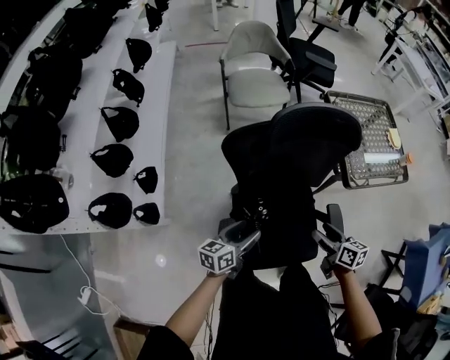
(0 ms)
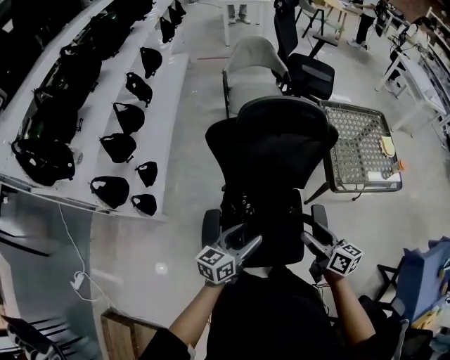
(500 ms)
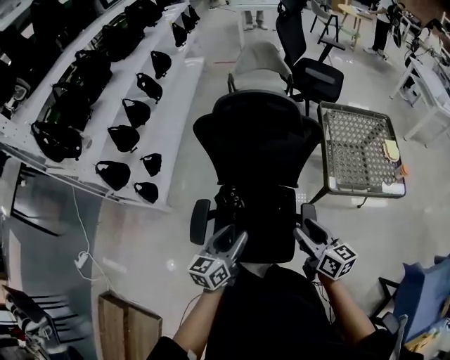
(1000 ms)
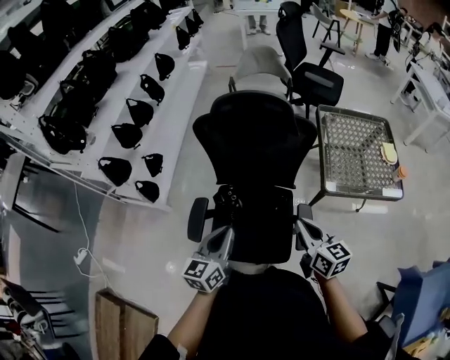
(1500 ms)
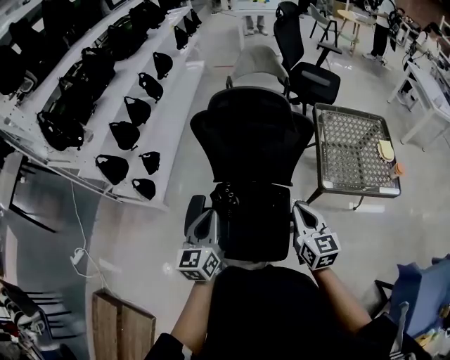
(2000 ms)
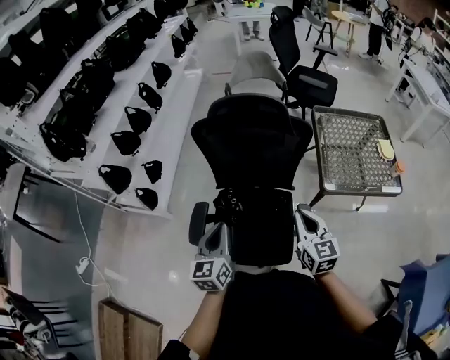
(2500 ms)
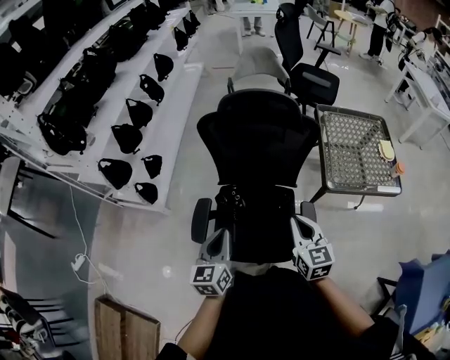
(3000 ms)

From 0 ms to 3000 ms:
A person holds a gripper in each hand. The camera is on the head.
From 0 ms to 1500 ms: The right gripper goes roughly 20 cm upward, to the right and backward, swivels roughly 30 degrees, and closes its fingers; the left gripper shifts about 30 cm to the right, backward and upward, swivels some 40 degrees, and closes up.
From 1500 ms to 3000 ms: The grippers both shift to the left by about 5 cm. The right gripper changes its angle by about 20 degrees.

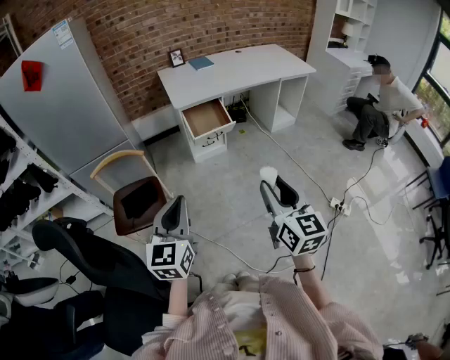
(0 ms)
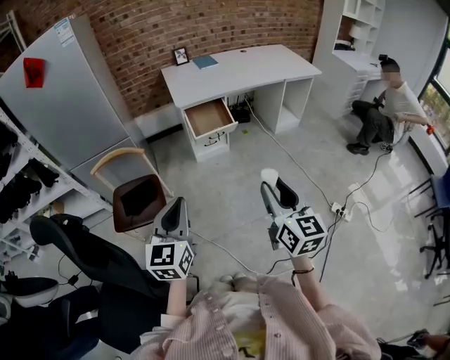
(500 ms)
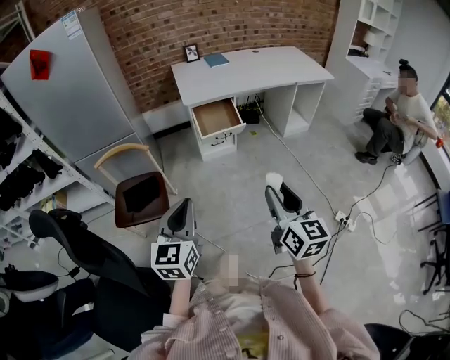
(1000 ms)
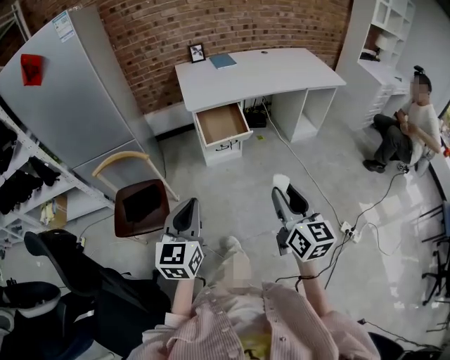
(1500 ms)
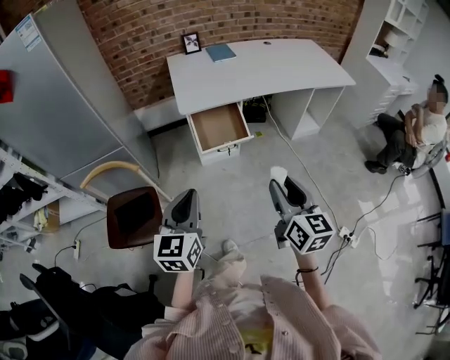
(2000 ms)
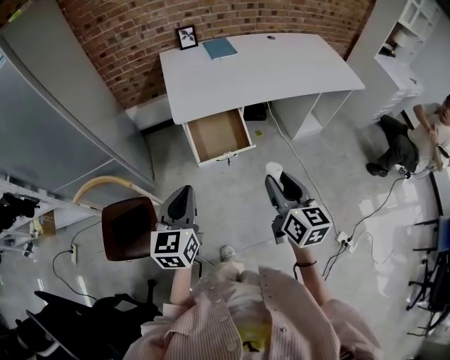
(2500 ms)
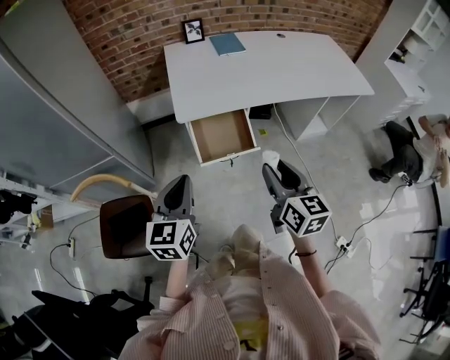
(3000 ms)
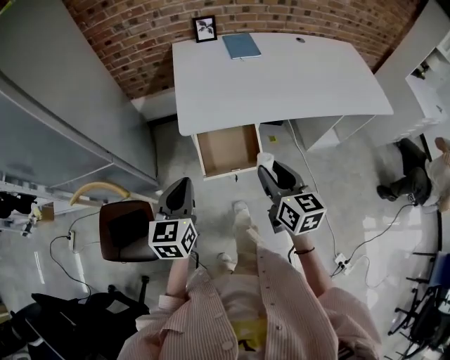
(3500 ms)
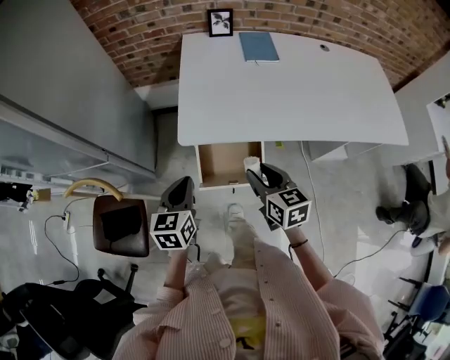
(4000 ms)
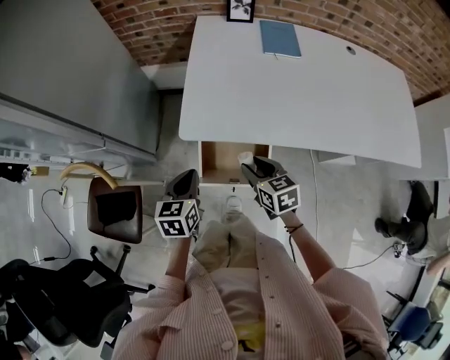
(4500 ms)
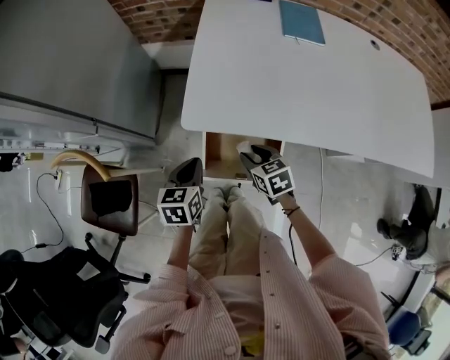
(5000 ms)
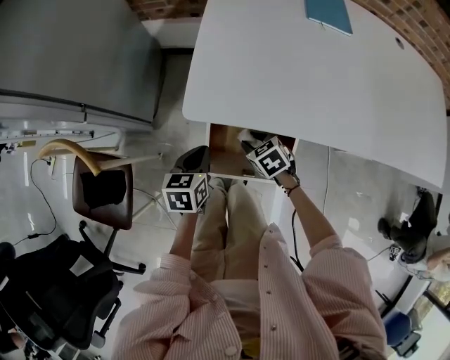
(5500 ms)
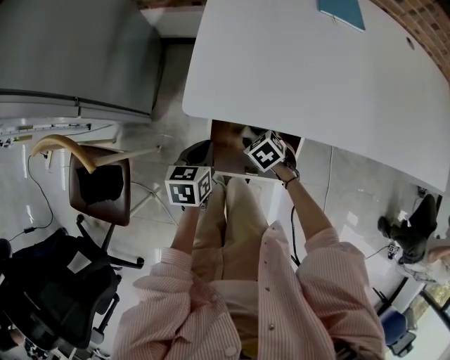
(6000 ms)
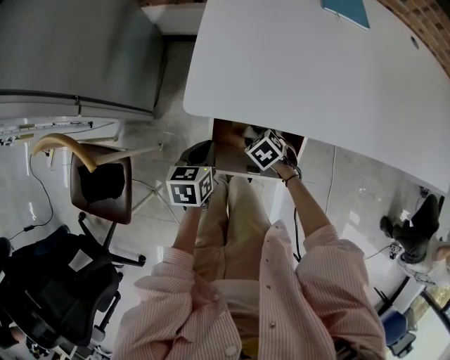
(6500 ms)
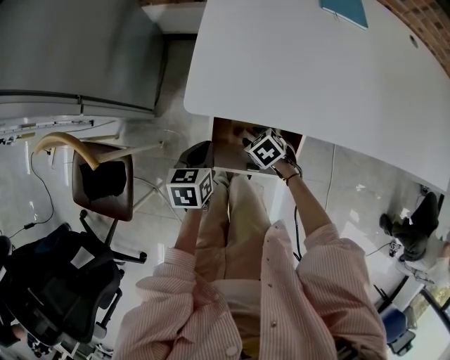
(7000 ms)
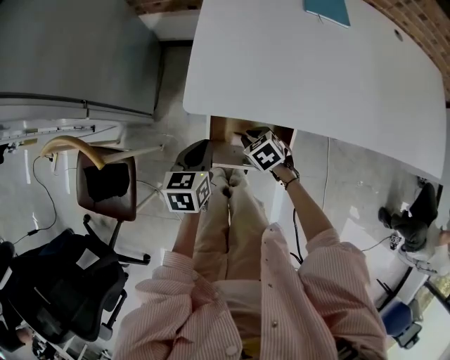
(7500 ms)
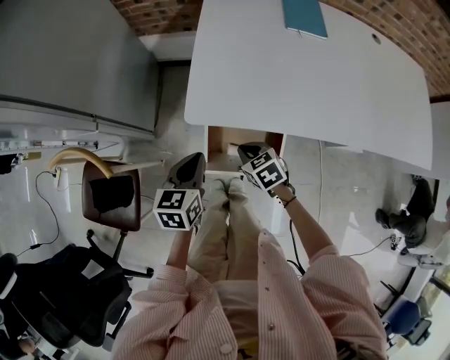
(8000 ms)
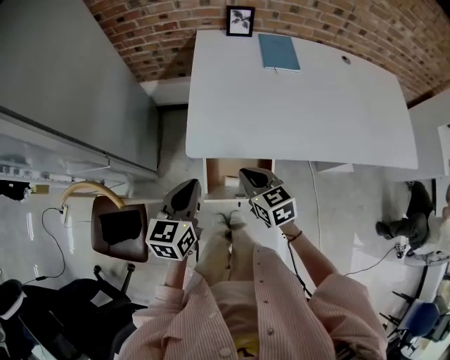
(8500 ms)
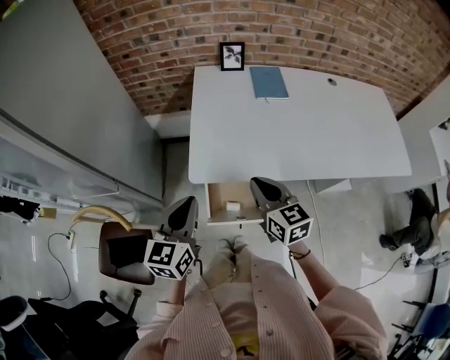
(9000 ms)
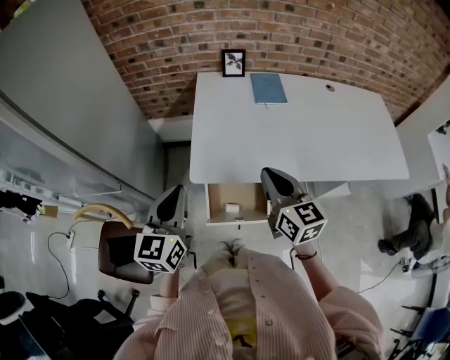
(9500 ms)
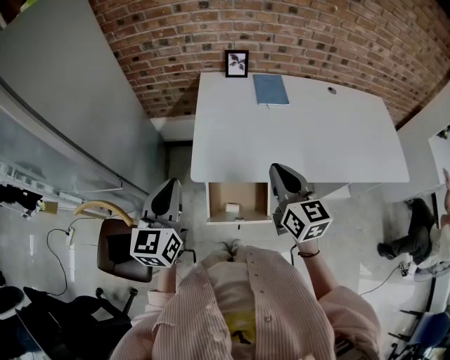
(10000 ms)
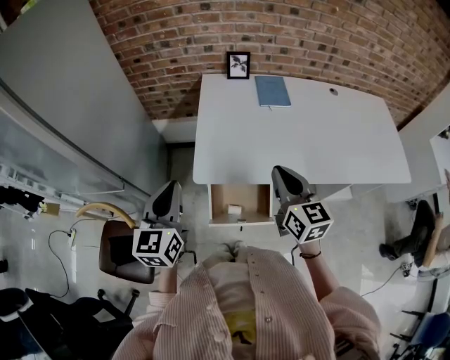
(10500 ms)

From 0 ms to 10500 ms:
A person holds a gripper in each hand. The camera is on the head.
From 0 ms to 2000 ms: Both grippers travel together forward, roughly 30 cm.
From 2000 ms to 4000 ms: Both grippers travel together forward, approximately 40 cm. The right gripper changes its angle by approximately 30 degrees, while the left gripper rotates approximately 20 degrees.
From 4000 ms to 6500 ms: Both grippers travel together downward, some 30 cm. The left gripper rotates about 20 degrees. The right gripper tilts its fingers approximately 40 degrees downward.
From 6500 ms to 8500 ms: Both grippers move upward, roughly 30 cm. The right gripper points its fingers approximately 40 degrees further upward, and closes its fingers. The left gripper rotates about 20 degrees.
From 8500 ms to 10500 ms: The left gripper is displaced upward by some 15 cm, and rotates roughly 20 degrees. Meanwhile the right gripper is displaced upward and to the right by roughly 20 cm, and changes its angle by roughly 30 degrees.

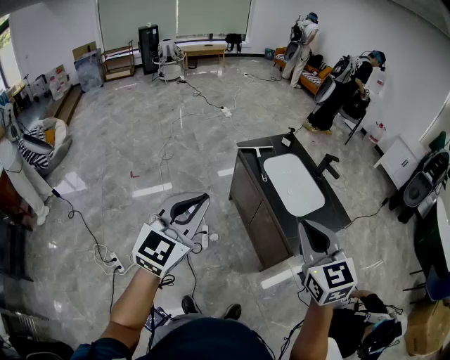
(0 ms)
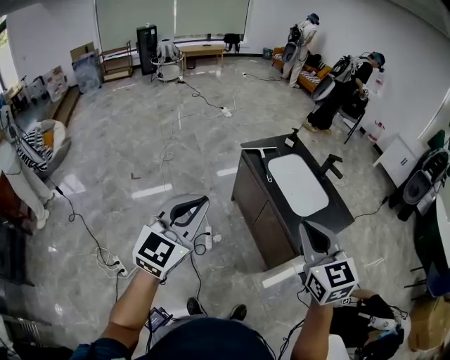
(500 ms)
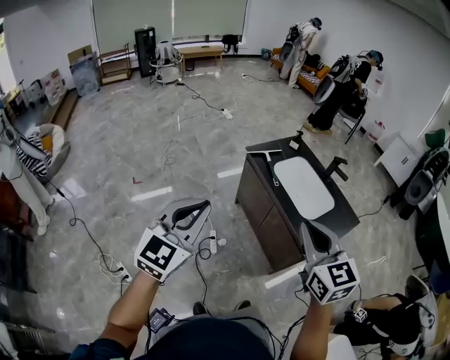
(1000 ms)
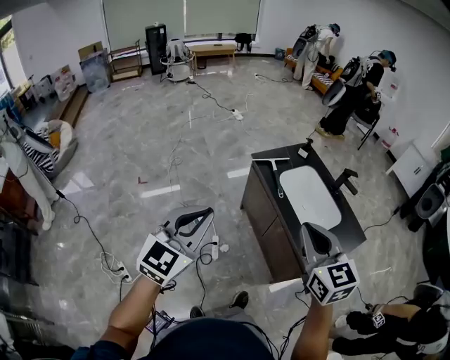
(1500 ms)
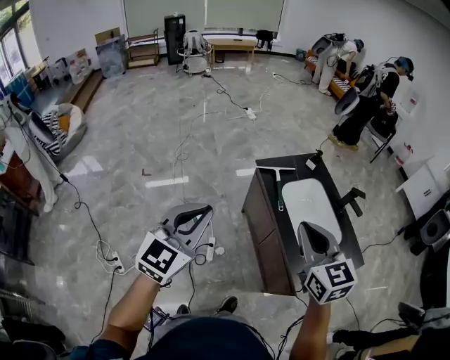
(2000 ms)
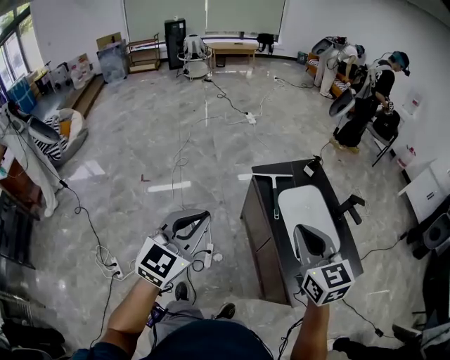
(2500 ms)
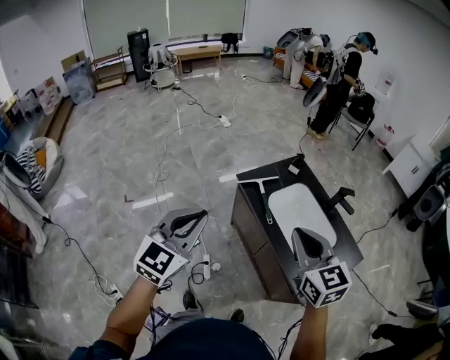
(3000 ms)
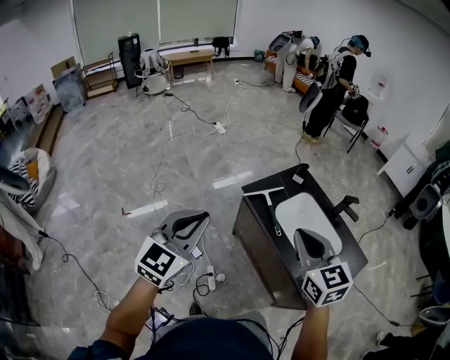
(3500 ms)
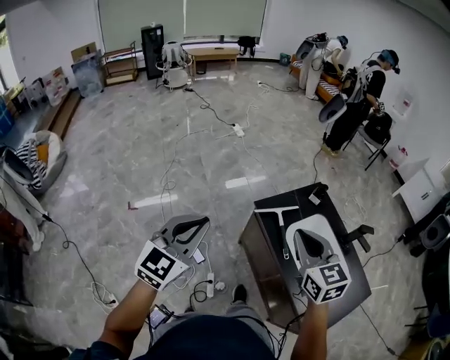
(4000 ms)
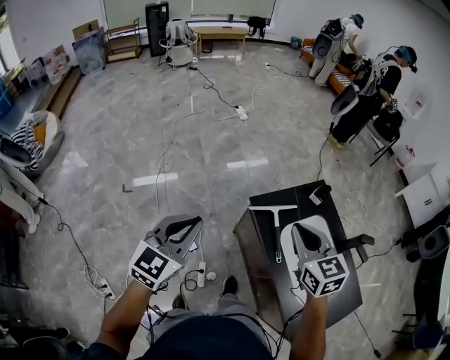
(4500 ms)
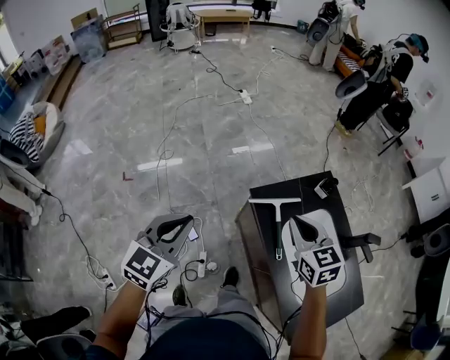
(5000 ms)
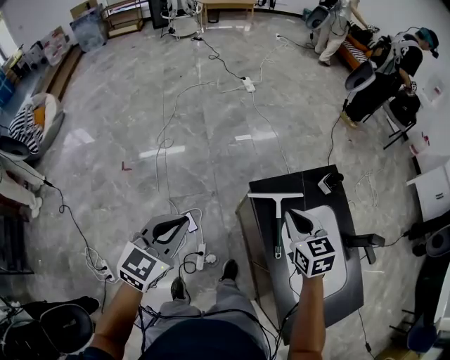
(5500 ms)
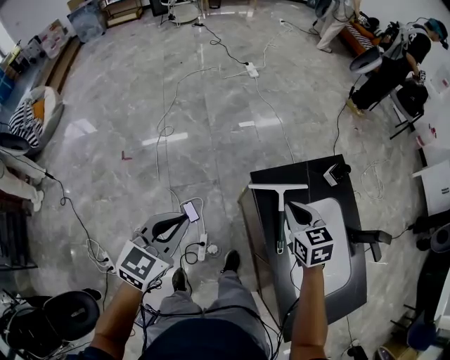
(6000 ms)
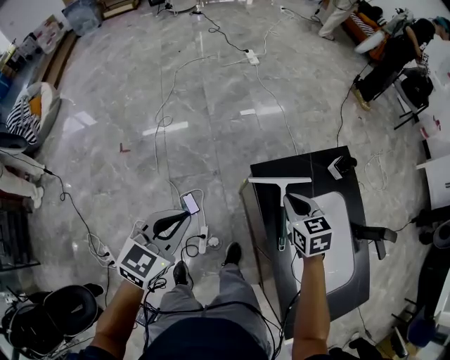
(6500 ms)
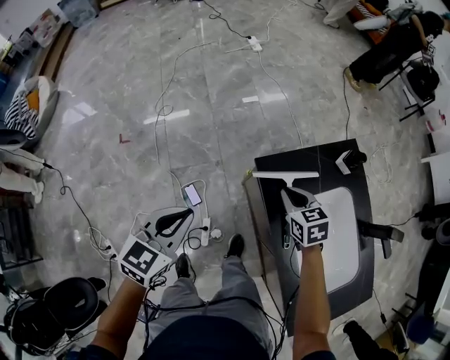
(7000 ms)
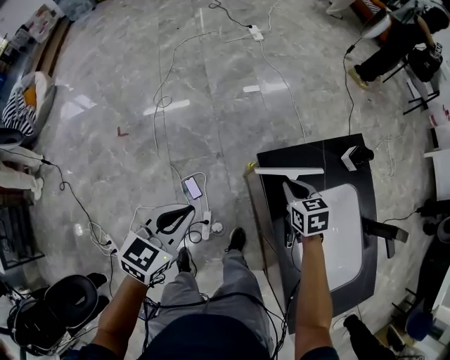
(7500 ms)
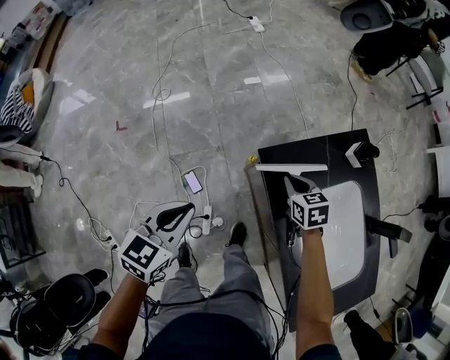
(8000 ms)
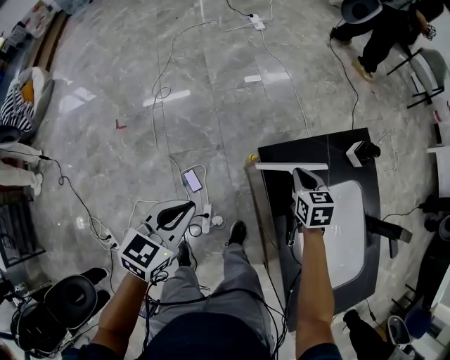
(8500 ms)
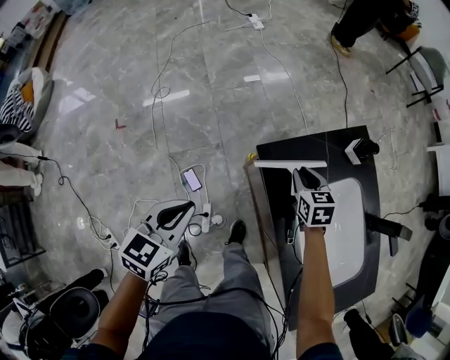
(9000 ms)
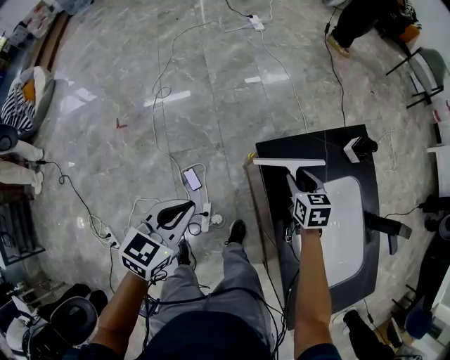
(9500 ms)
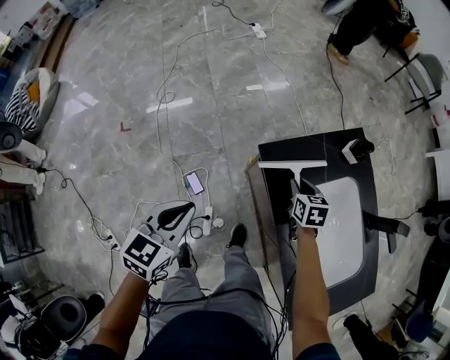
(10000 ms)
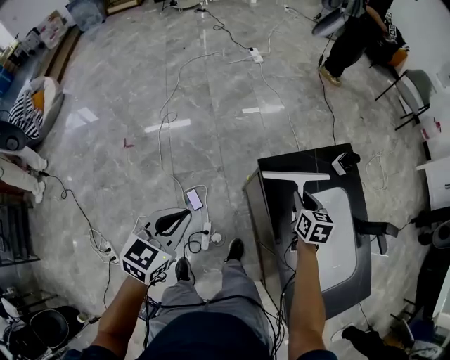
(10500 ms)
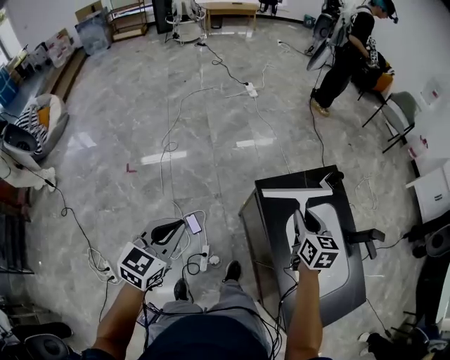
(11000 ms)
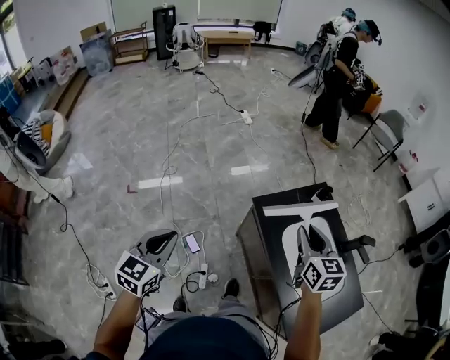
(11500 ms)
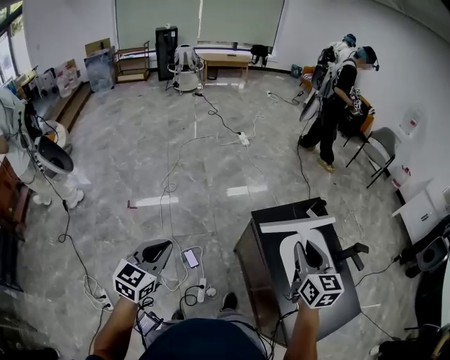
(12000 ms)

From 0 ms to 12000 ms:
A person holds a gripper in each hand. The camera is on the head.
From 0 ms to 2000 ms: Both grippers travel together forward, approximately 20 cm.
From 2000 ms to 4000 ms: Both grippers travel together forward, some 25 cm.
From 4000 ms to 6000 ms: The grippers both shift downward and forward by roughly 30 cm. The left gripper rotates some 20 degrees. Meanwhile the right gripper changes its angle by roughly 20 degrees.
From 6000 ms to 8000 ms: Both grippers move downward, about 15 cm.
From 8000 ms to 10000 ms: The right gripper shifts by about 5 cm.
From 10000 ms to 12000 ms: The left gripper is displaced upward, backward and to the left by approximately 30 cm. Meanwhile the right gripper heads upward and backward, covering roughly 50 cm, and tilts its fingers approximately 30 degrees upward.

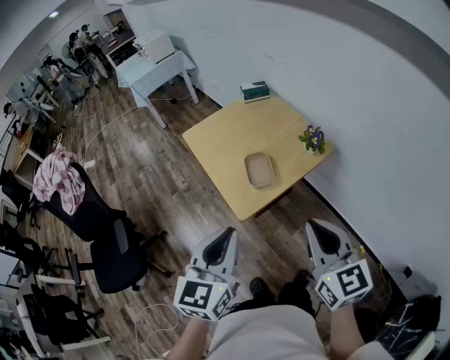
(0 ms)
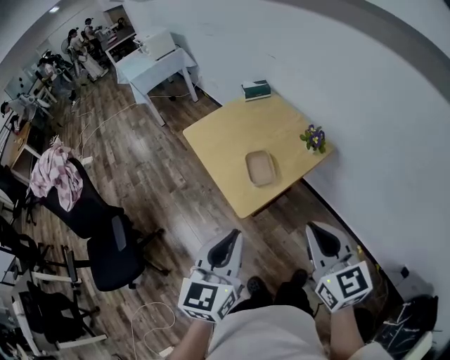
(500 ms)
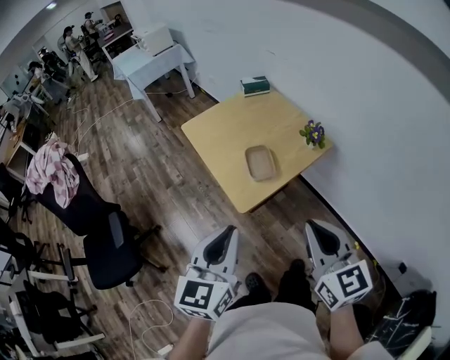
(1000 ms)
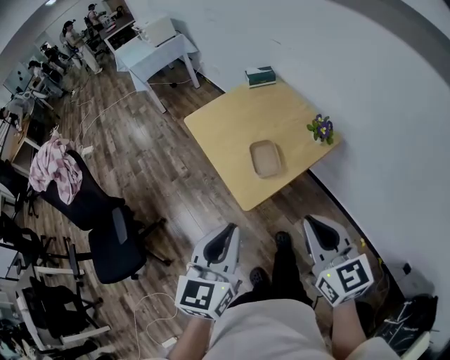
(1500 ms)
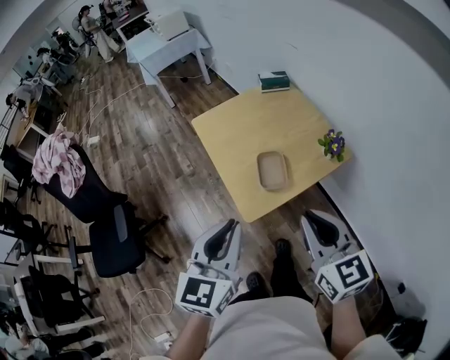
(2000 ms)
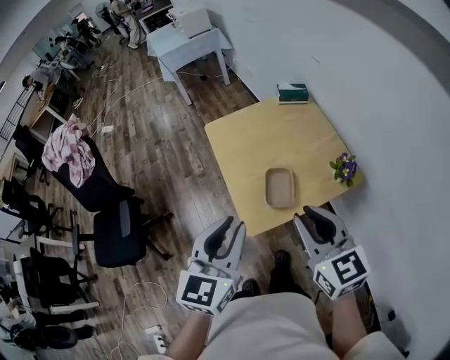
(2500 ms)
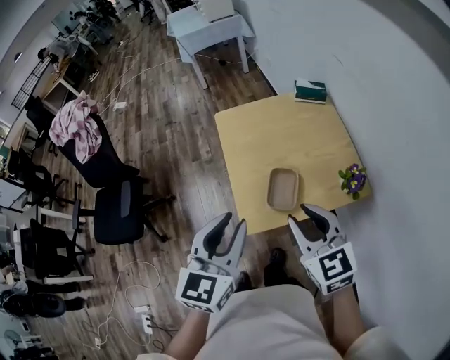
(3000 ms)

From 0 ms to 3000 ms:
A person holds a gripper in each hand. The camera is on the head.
From 0 ms to 1500 ms: There are only small adjustments of the grippers.
From 1500 ms to 3000 ms: The grippers both shift forward by some 15 cm. The right gripper turns by roughly 30 degrees, and opens up.
